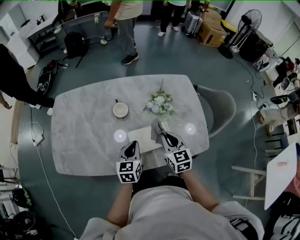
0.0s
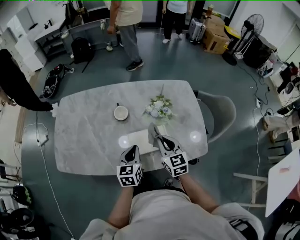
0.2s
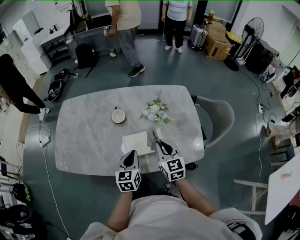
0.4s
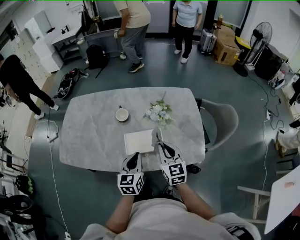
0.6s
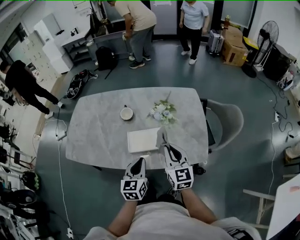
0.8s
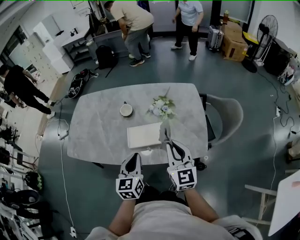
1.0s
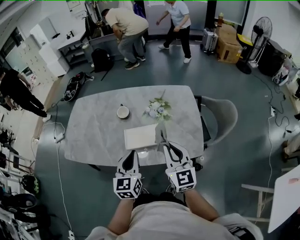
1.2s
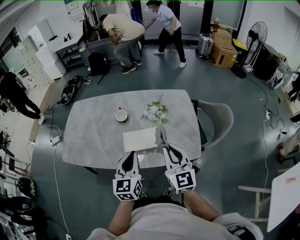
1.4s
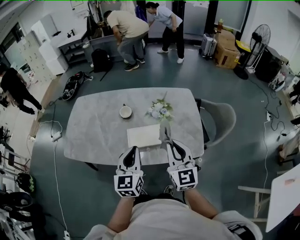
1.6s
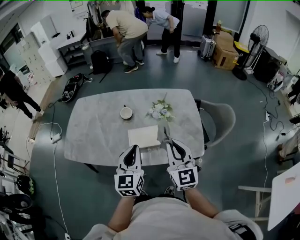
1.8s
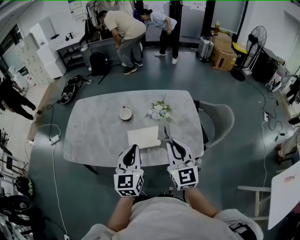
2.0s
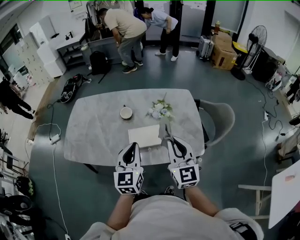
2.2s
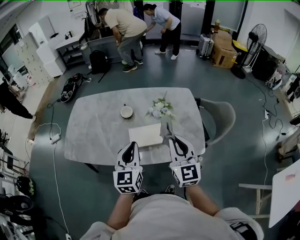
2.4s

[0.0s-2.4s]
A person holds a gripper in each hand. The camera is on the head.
0.0s to 1.2s: The grippers both shift backward, upward and to the right by roughly 20 cm. The left gripper turns by some 20 degrees. The right gripper swivels some 20 degrees.
1.2s to 2.4s: The right gripper moves some 5 cm. Meanwhile the left gripper goes about 5 cm upward.

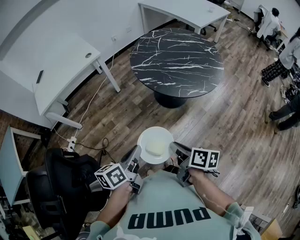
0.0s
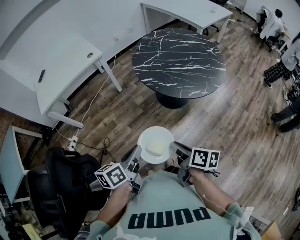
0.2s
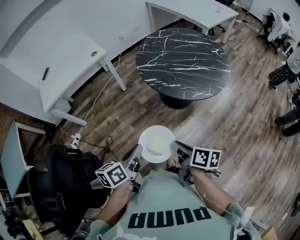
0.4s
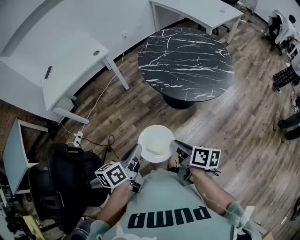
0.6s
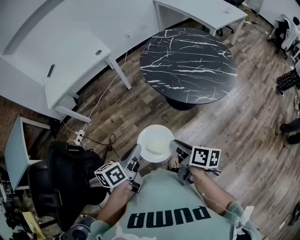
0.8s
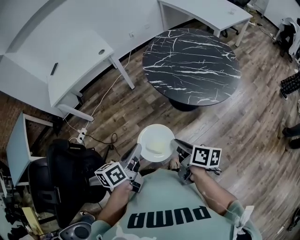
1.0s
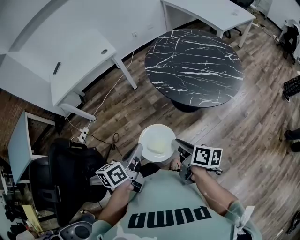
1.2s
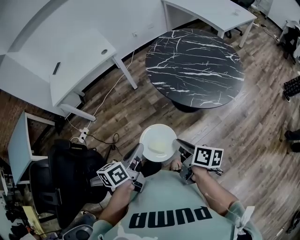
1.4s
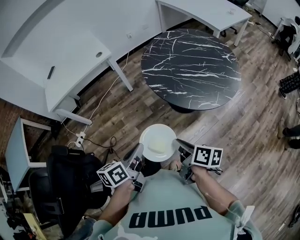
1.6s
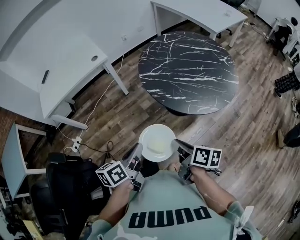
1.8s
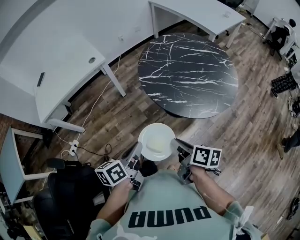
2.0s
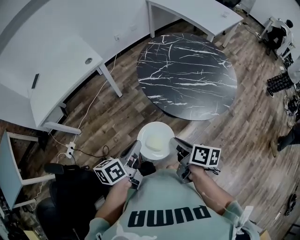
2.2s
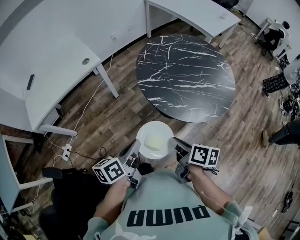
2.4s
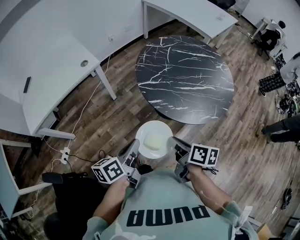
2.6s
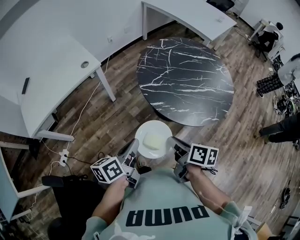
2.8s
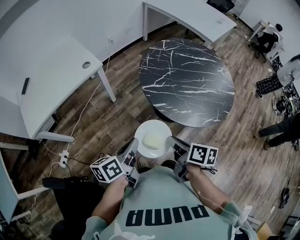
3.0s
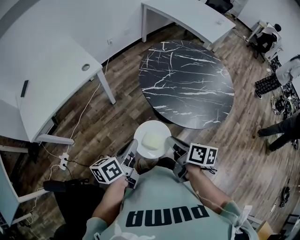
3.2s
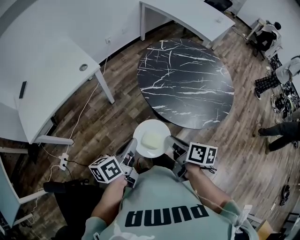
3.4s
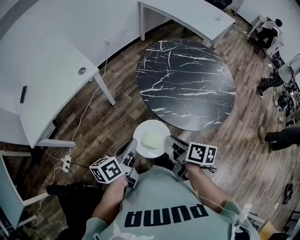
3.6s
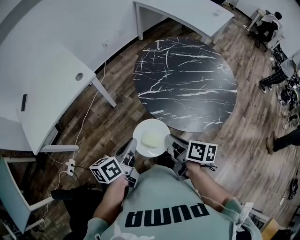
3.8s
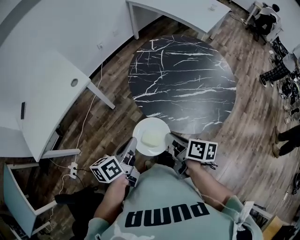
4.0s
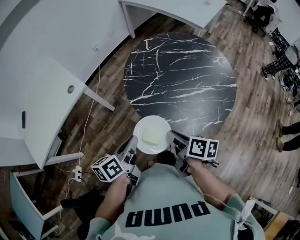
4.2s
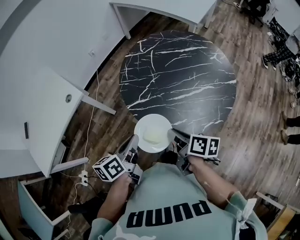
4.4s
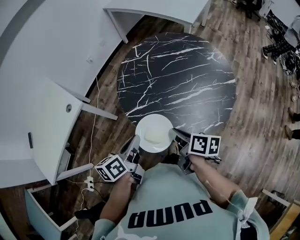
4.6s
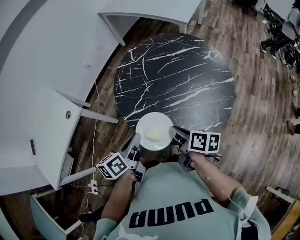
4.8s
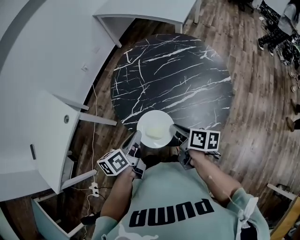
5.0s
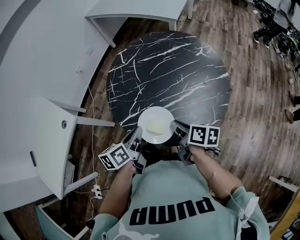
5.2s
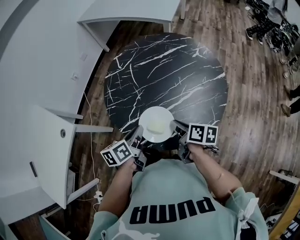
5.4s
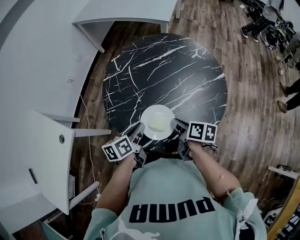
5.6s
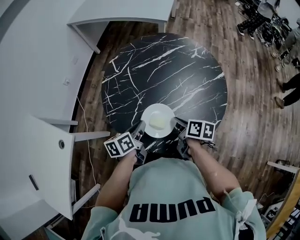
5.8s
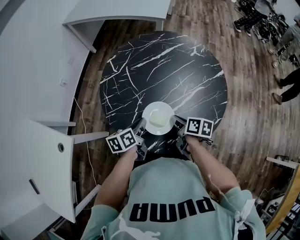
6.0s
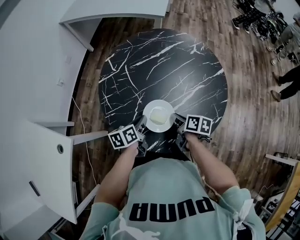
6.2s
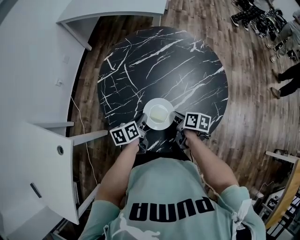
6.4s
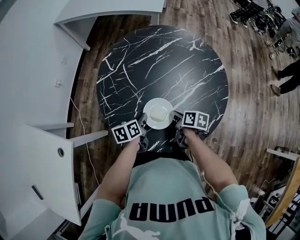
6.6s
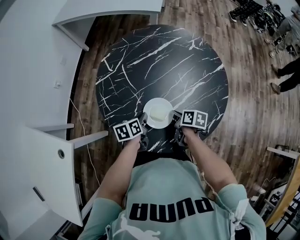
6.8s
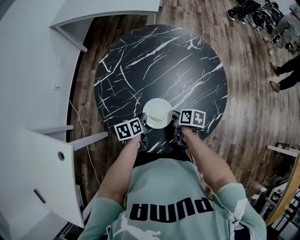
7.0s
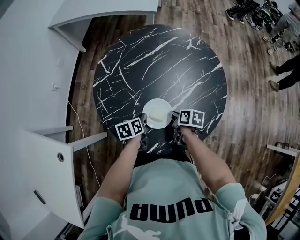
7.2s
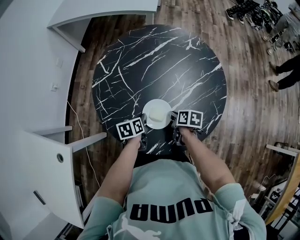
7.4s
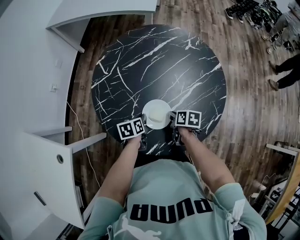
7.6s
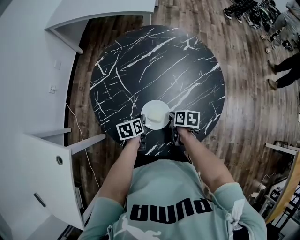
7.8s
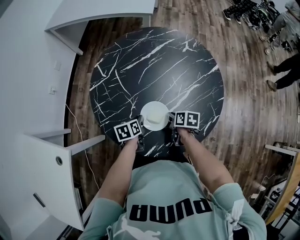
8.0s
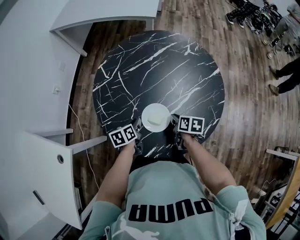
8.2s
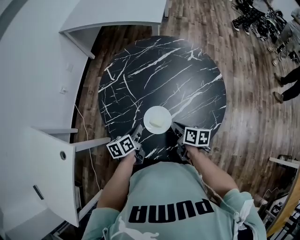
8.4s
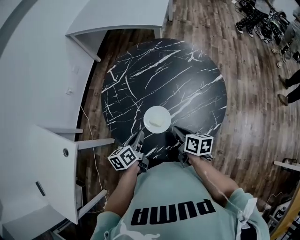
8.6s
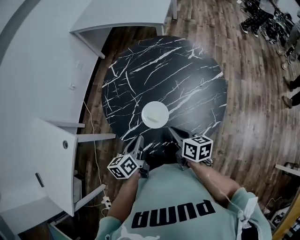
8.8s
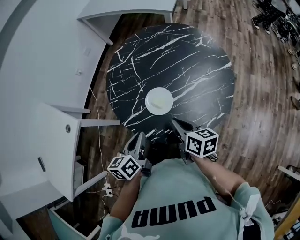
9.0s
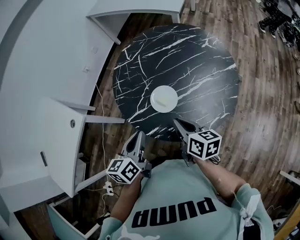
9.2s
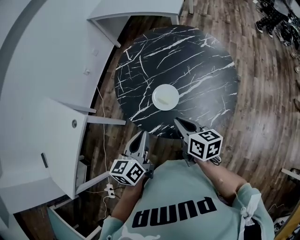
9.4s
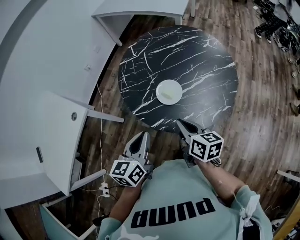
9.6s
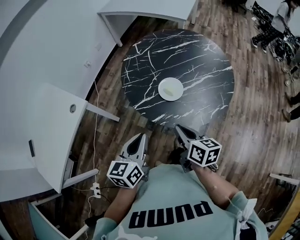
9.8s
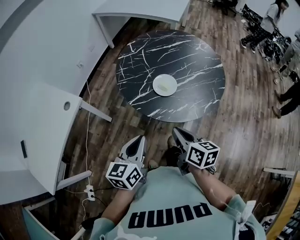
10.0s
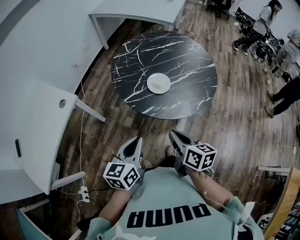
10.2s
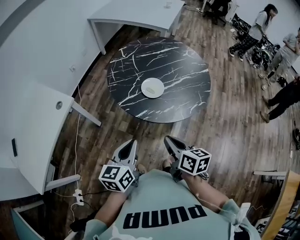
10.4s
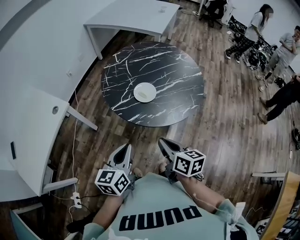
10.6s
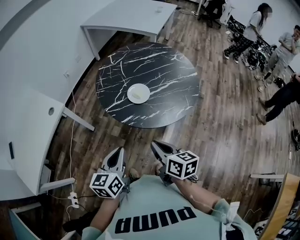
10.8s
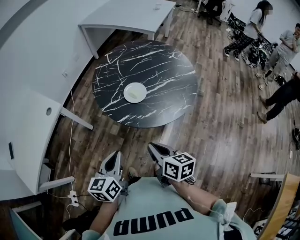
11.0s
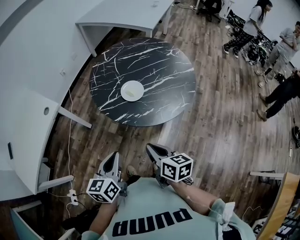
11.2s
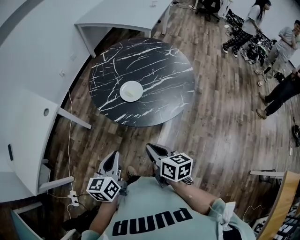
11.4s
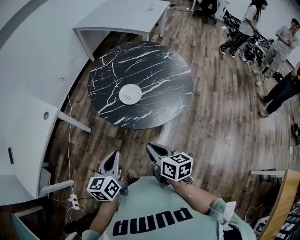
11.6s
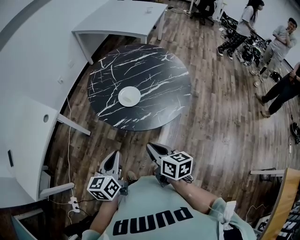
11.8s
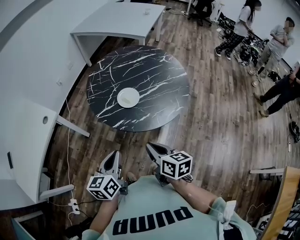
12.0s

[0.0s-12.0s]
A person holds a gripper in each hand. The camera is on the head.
0.0s to 1.6s: The grippers both shift forward by some 10 cm.
1.6s to 3.0s: The two grippers go roughly 20 cm forward and to the left.
3.0s to 4.4s: The grippers both shift forward and to the right by some 20 cm.
4.4s to 6.0s: The two grippers go about 25 cm forward and downward. The left gripper swivels roughly 30 degrees. Meanwhile the right gripper rotates some 20 degrees.
6.0s to 7.6s: The two grippers go about 10 cm downward. The left gripper turns by some 20 degrees.
7.6s to 9.0s: The two grippers go approximately 25 cm upward and backward. The right gripper rotates some 40 degrees, while the left gripper changes its angle by some 30 degrees.
9.0s to 10.4s: Both grippers move backward, roughly 25 cm.
10.4s to 12.0s: Both grippers travel together to the right, roughly 5 cm.

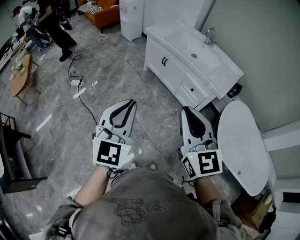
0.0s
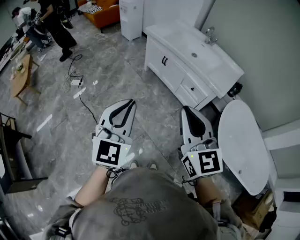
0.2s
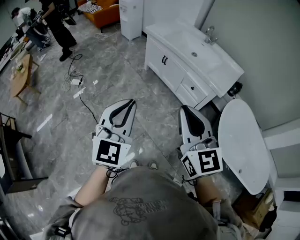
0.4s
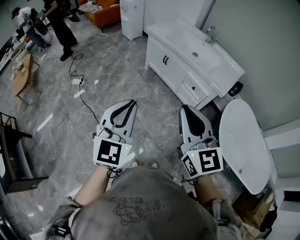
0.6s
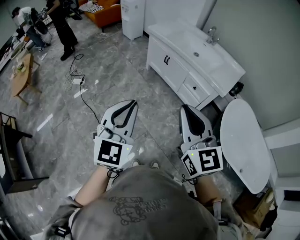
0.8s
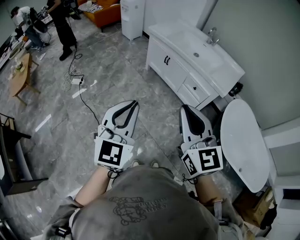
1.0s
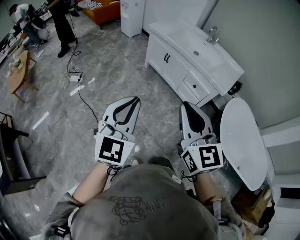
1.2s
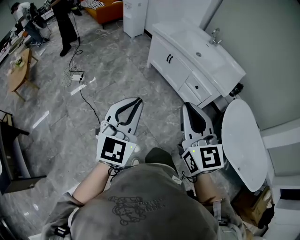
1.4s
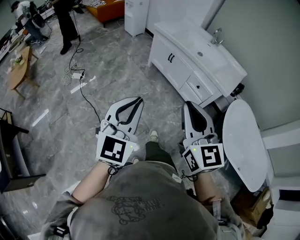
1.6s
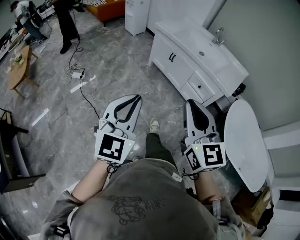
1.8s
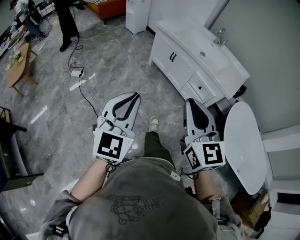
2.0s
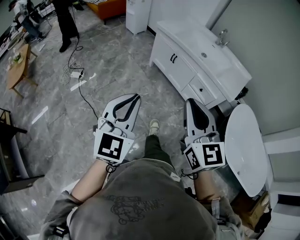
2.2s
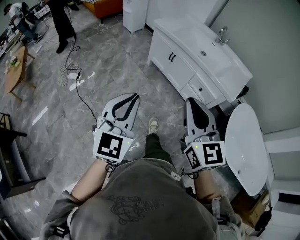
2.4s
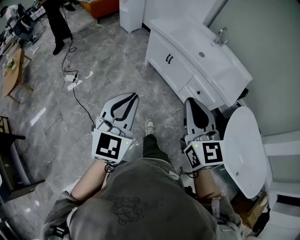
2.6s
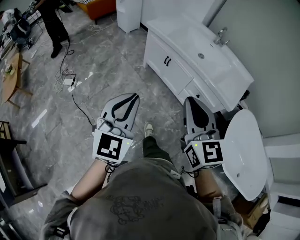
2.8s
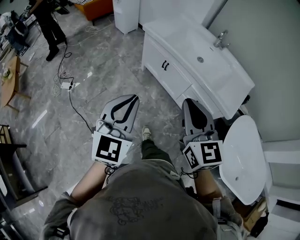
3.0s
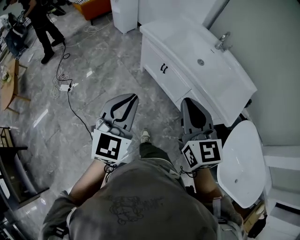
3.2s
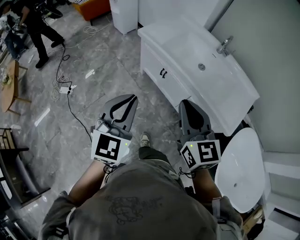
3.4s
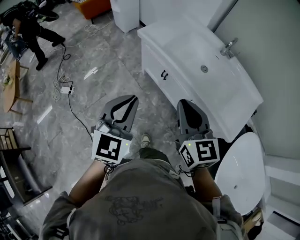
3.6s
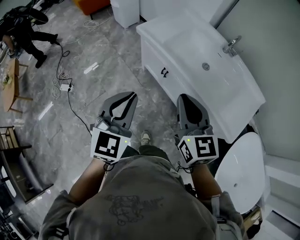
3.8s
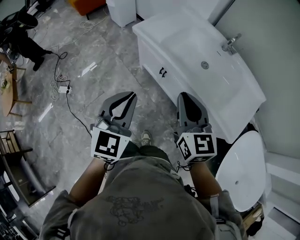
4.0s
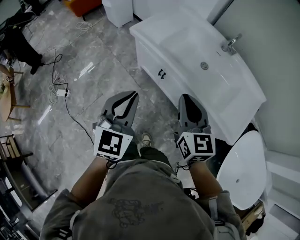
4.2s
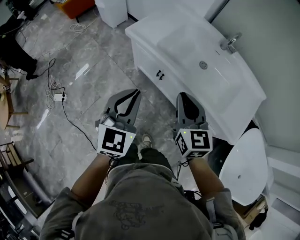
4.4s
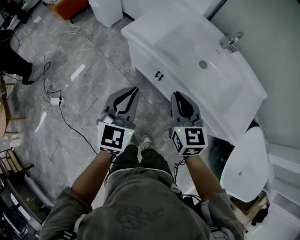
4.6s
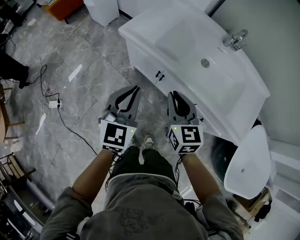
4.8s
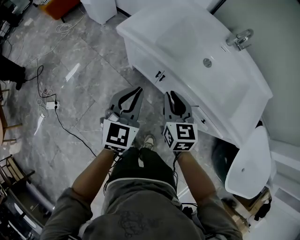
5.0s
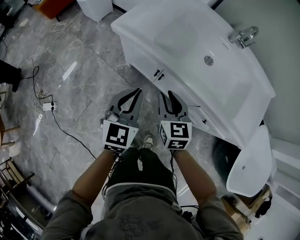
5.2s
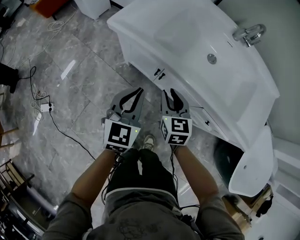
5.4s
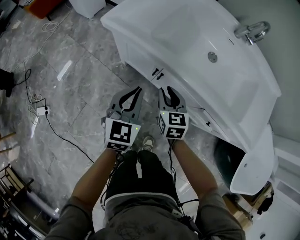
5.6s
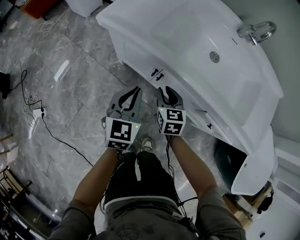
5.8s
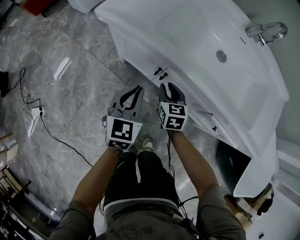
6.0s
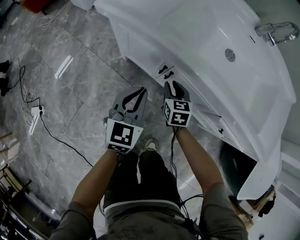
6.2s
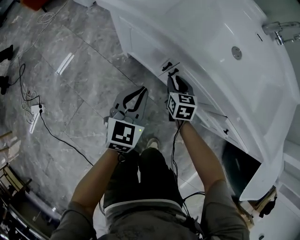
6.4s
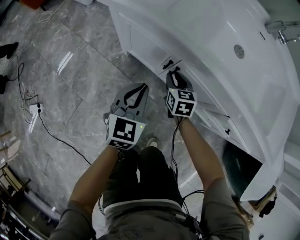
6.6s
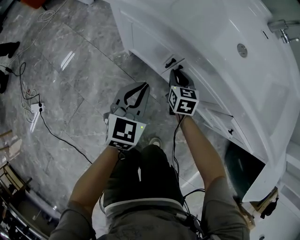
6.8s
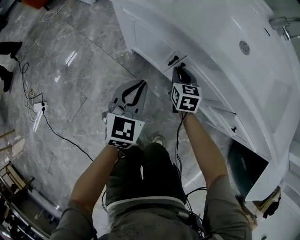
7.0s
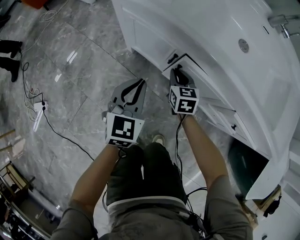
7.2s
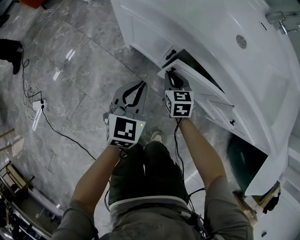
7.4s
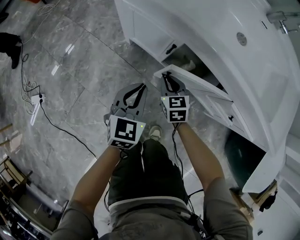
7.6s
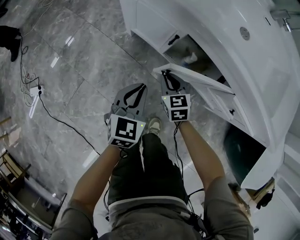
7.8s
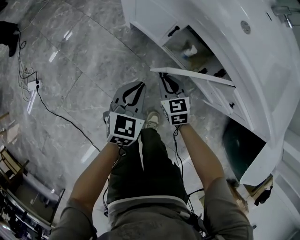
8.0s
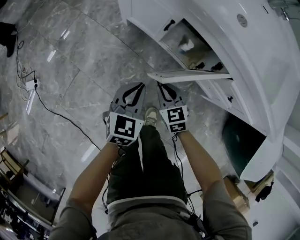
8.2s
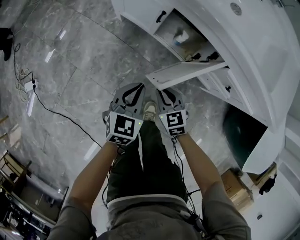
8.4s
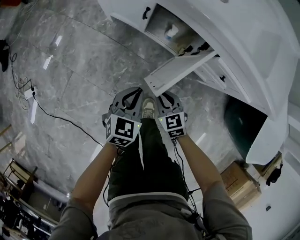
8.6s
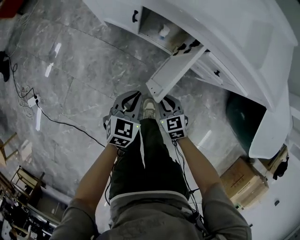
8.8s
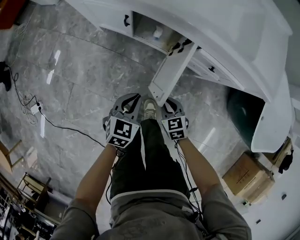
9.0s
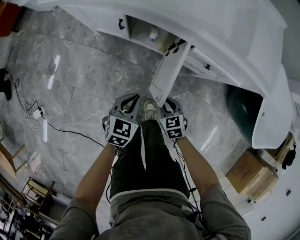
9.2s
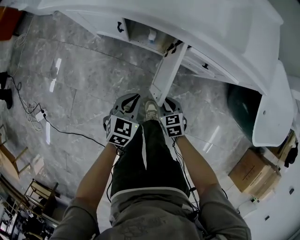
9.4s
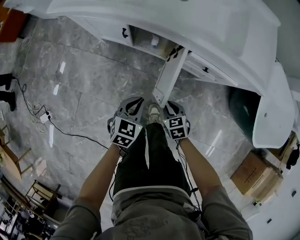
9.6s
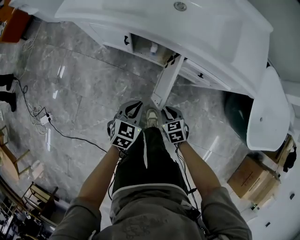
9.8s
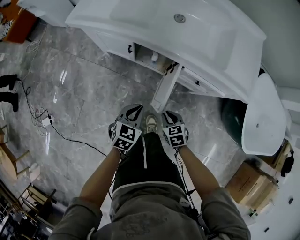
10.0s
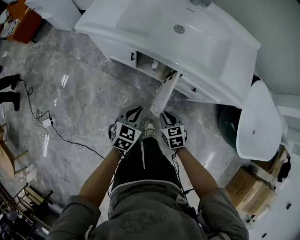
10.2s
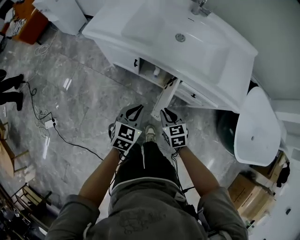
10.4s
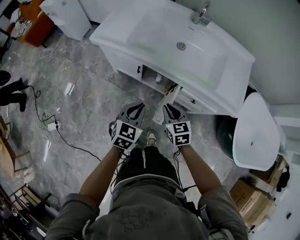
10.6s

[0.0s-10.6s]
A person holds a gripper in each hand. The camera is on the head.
0.0s to 1.6s: The two grippers go approximately 5 cm to the left.
1.6s to 3.0s: The grippers both shift forward by approximately 30 cm.
3.0s to 4.6s: The right gripper heads forward and downward, covering some 35 cm. Meanwhile the left gripper shifts some 35 cm forward.
4.6s to 6.0s: The two grippers go about 35 cm downward and forward. The right gripper swivels some 20 degrees.
6.0s to 7.6s: Both grippers travel together downward and backward, approximately 10 cm.
7.6s to 9.0s: The grippers both shift backward and to the right by approximately 25 cm. The left gripper turns by roughly 20 degrees.
9.0s to 10.6s: The grippers both shift upward by about 25 cm.
